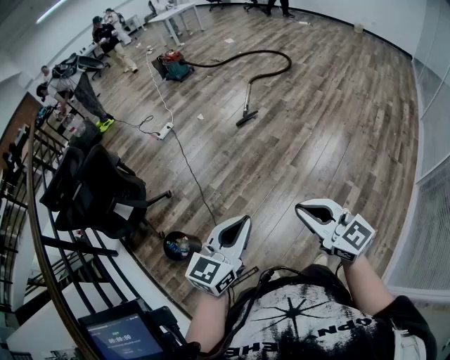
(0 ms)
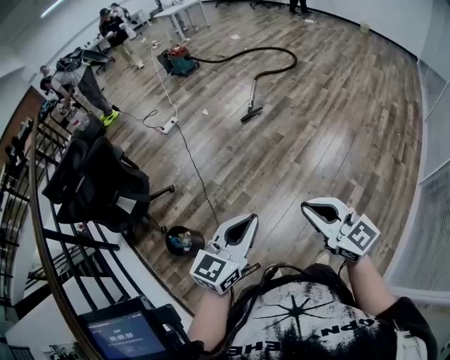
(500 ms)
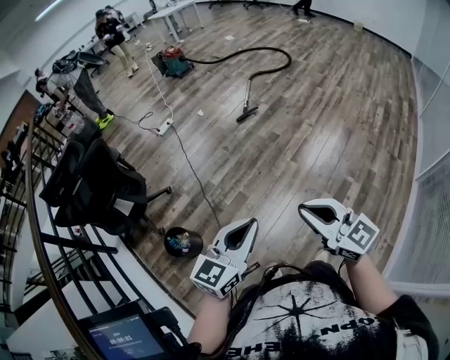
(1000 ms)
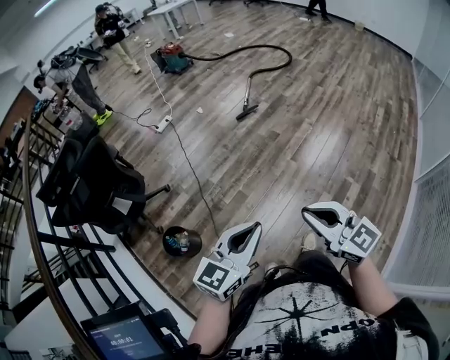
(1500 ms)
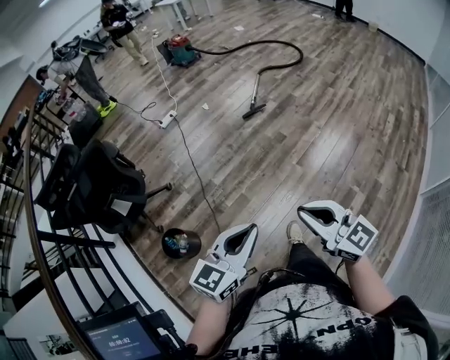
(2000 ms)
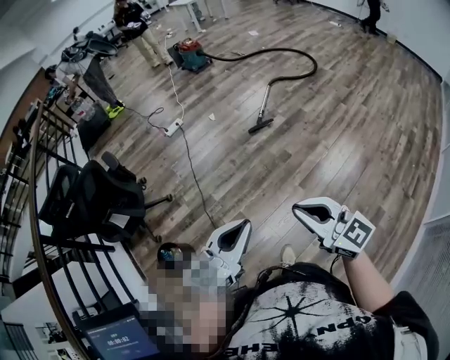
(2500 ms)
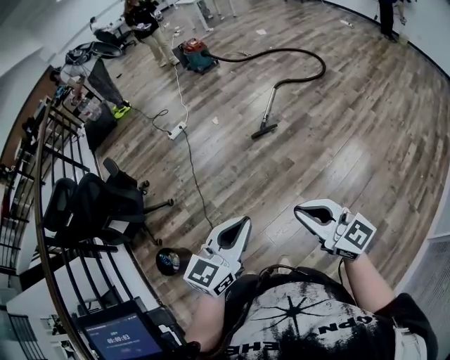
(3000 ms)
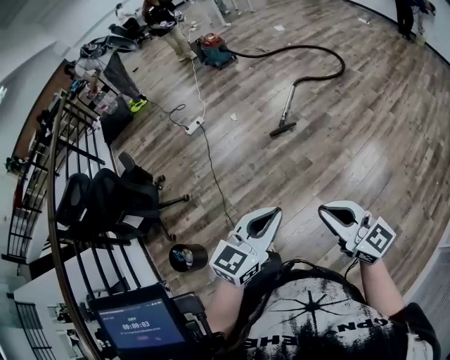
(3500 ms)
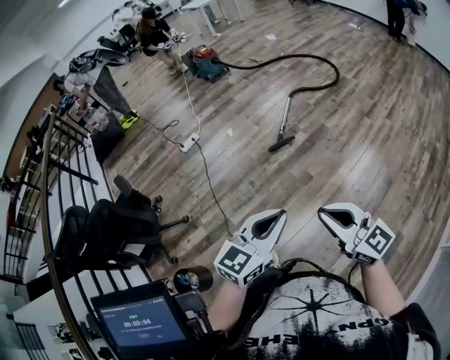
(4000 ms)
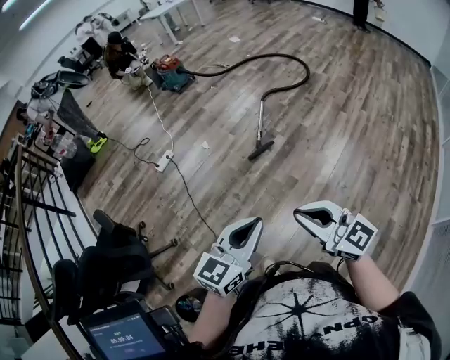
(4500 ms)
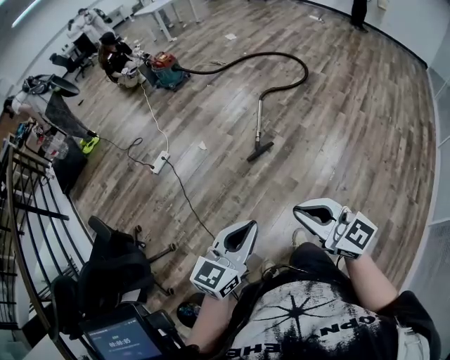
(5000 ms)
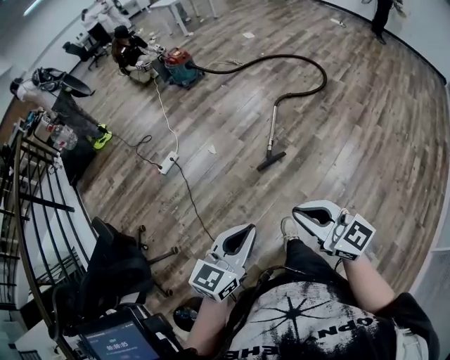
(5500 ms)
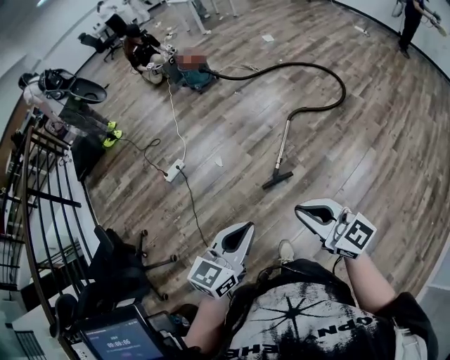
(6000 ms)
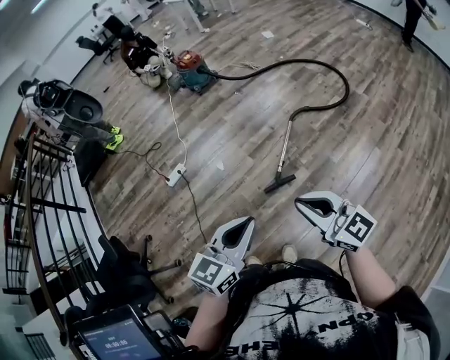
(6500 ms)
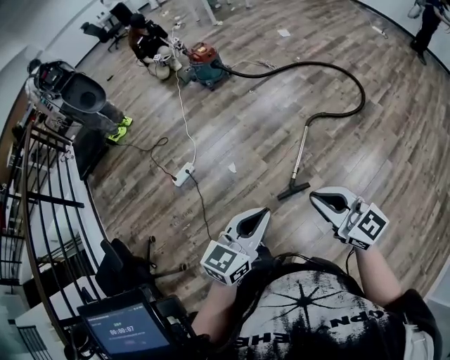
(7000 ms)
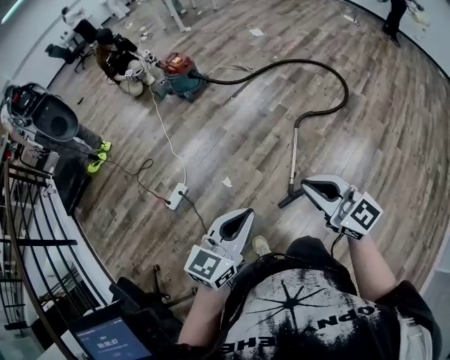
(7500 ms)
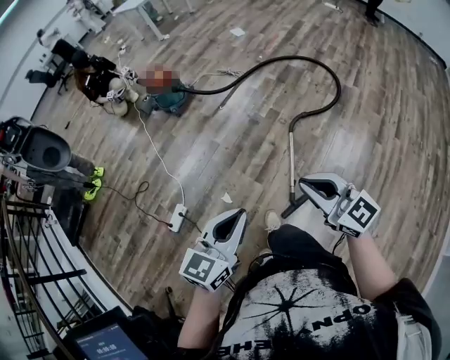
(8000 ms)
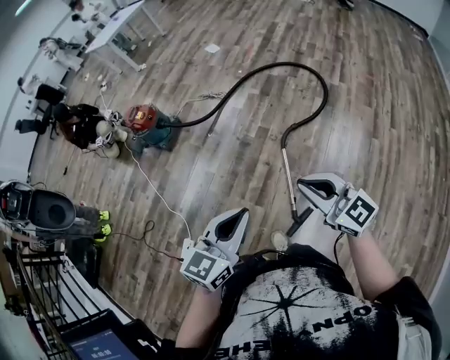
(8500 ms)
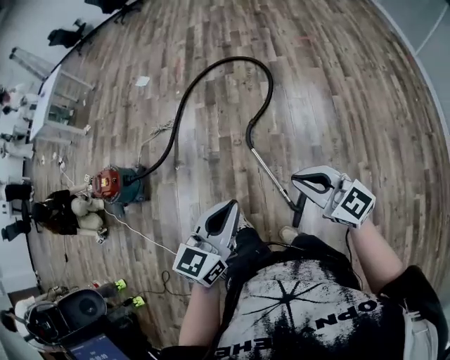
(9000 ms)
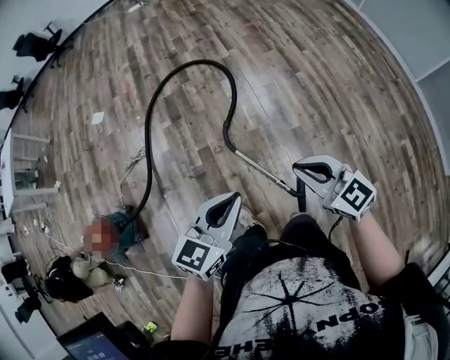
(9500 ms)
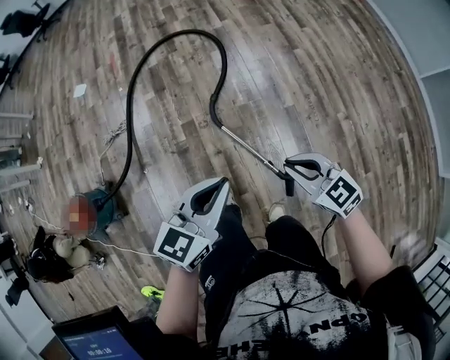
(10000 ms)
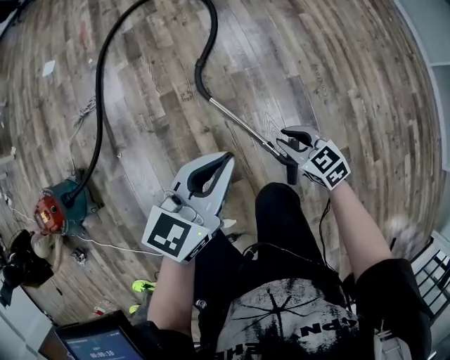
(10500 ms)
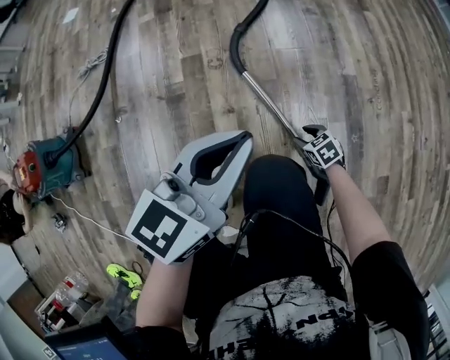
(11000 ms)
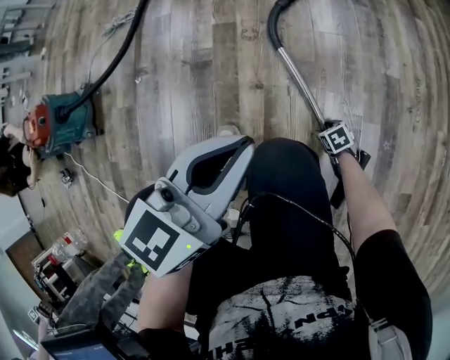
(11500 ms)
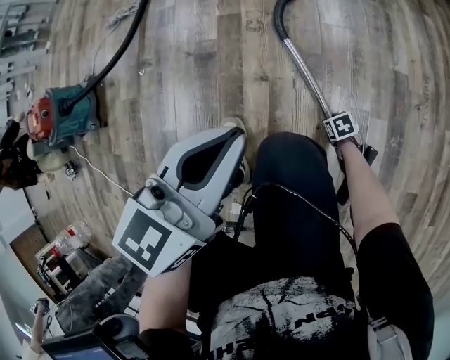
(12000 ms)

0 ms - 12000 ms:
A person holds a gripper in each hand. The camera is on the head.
0 ms - 2000 ms: The two grippers go approximately 5 cm forward.
2000 ms - 4000 ms: Both grippers move forward and to the right, approximately 40 cm.
4000 ms - 6000 ms: The two grippers travel together, forward, some 40 cm.
6000 ms - 8000 ms: The two grippers travel together, forward, roughly 50 cm.
8000 ms - 10000 ms: The right gripper moves roughly 35 cm, and swivels about 50 degrees, while the left gripper ends up approximately 40 cm from where it was, and turns by roughly 60 degrees.
10000 ms - 12000 ms: The left gripper is displaced downward by some 40 cm, and changes its angle by approximately 20 degrees. Meanwhile the right gripper shifts approximately 80 cm downward, tips its fingers downward by some 40 degrees, and opens up.

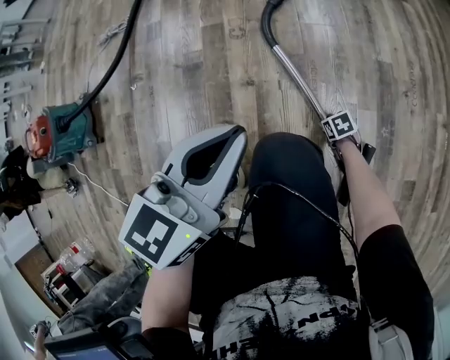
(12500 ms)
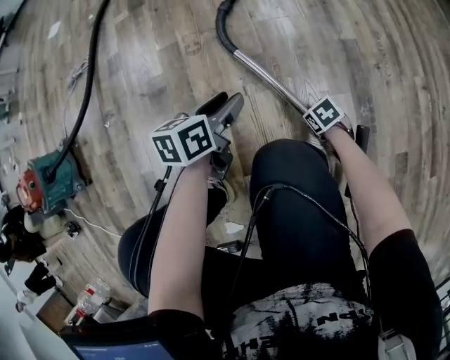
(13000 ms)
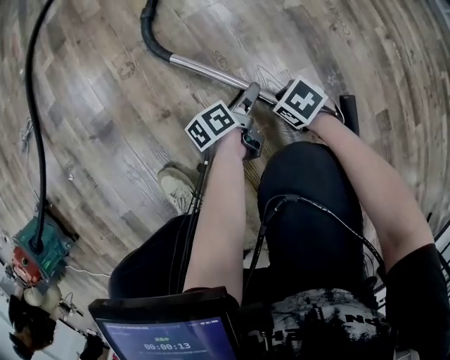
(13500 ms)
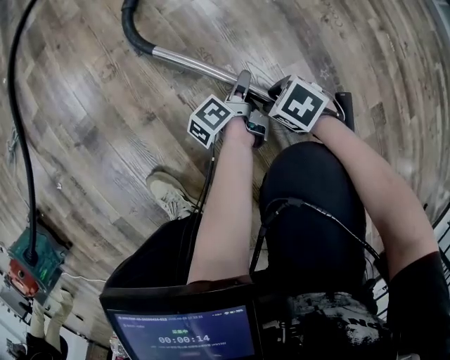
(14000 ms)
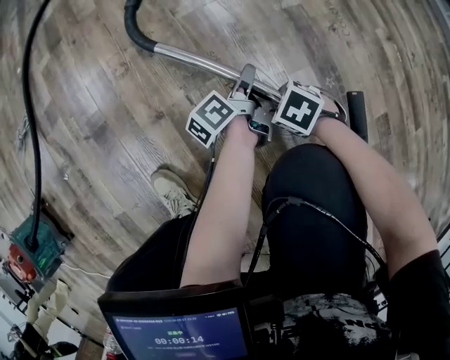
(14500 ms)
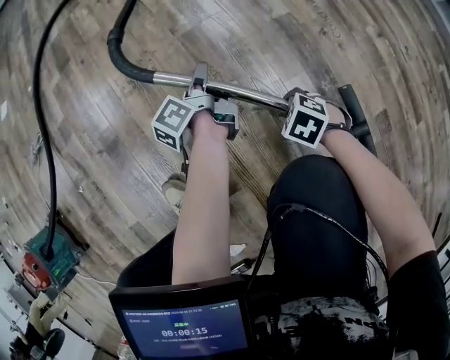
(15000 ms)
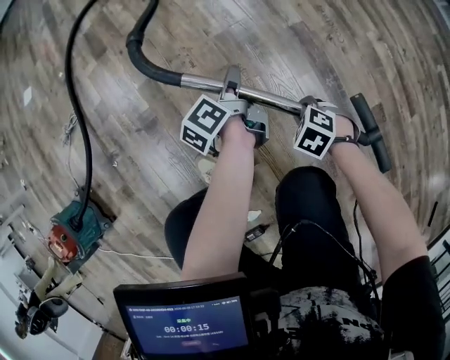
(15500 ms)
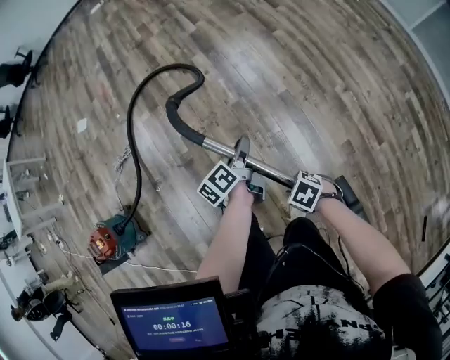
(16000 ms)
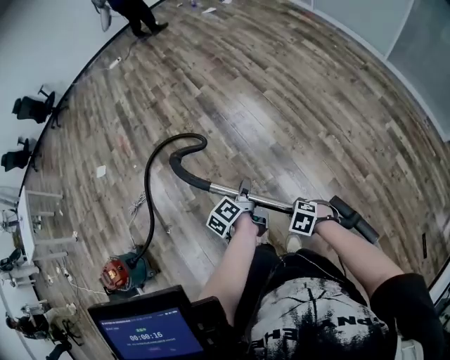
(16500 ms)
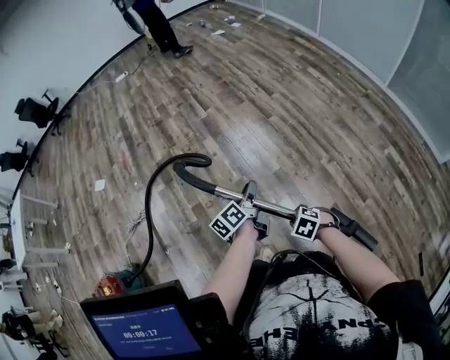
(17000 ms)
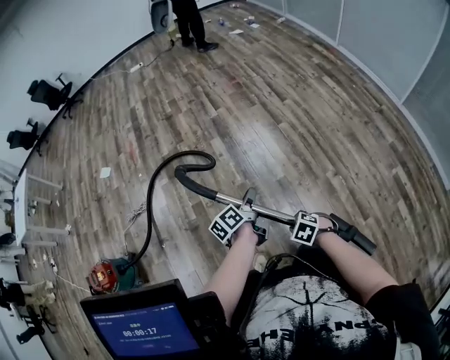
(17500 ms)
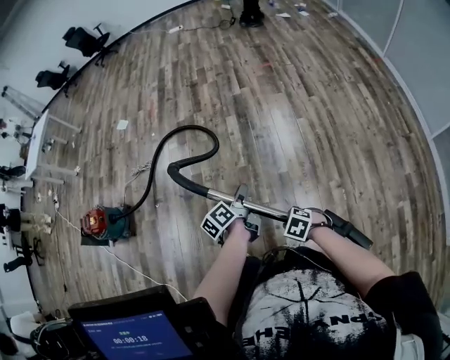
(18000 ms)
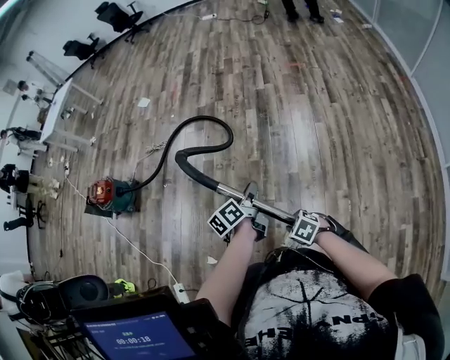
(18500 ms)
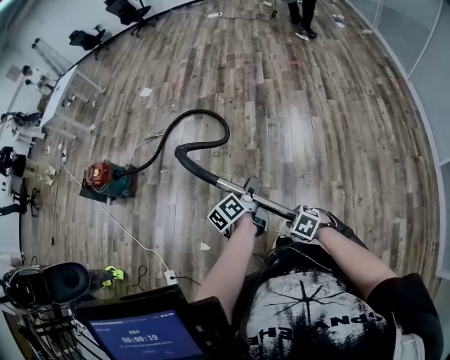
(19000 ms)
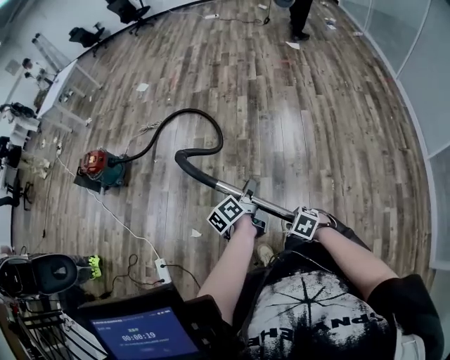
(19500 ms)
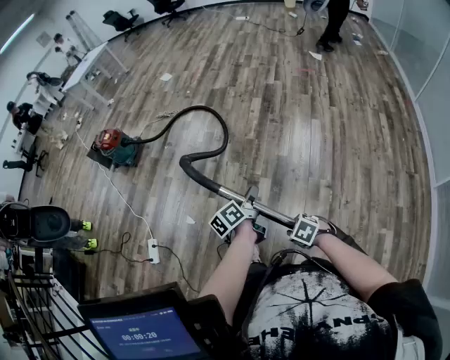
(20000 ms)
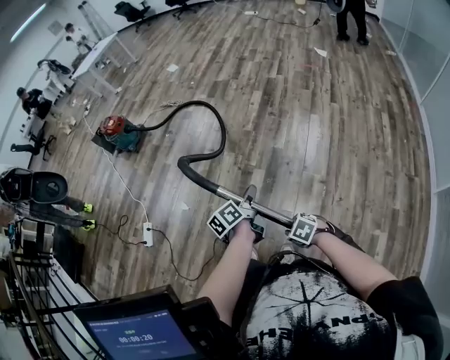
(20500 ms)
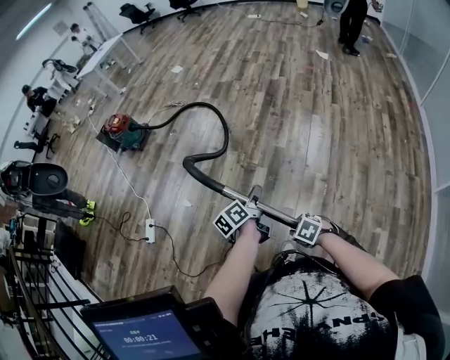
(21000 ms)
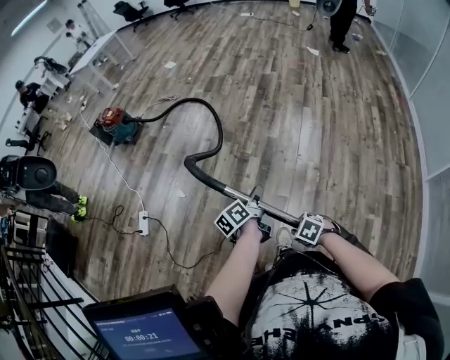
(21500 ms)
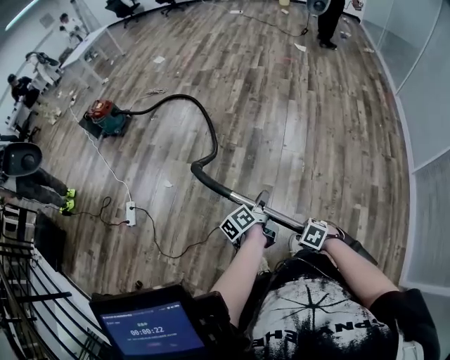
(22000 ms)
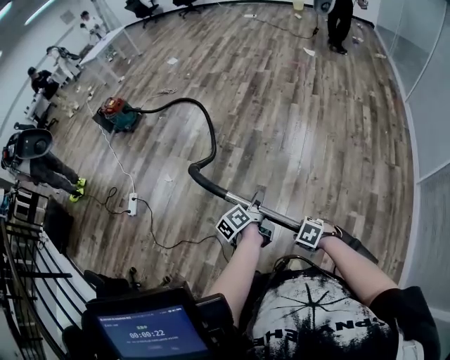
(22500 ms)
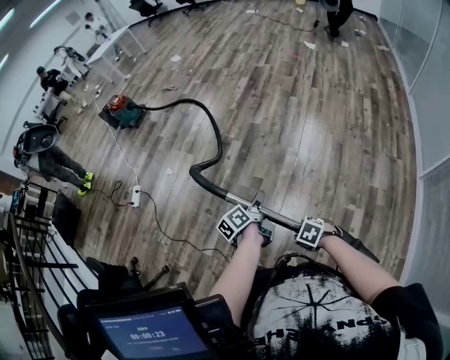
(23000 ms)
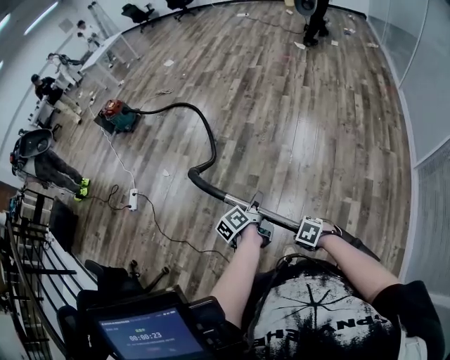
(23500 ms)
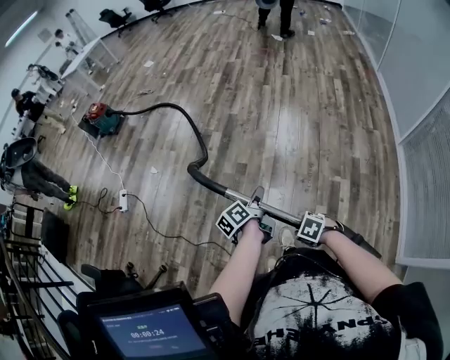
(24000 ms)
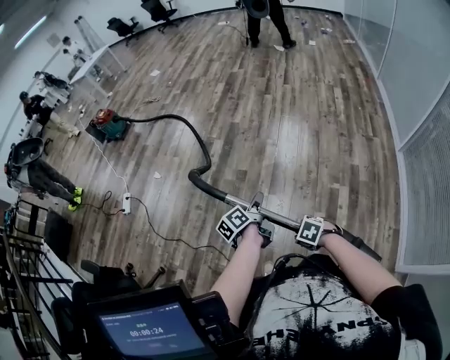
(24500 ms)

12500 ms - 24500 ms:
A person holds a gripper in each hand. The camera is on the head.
12500 ms - 14500 ms: The right gripper goes about 10 cm upward. The left gripper heads downward, covering some 40 cm, rotates around the line of its fingers by about 70 degrees, counterclockwise from behind, and opens up.
14500 ms - 16500 ms: Both grippers travel together upward, some 60 cm.
16500 ms - 18500 ms: The left gripper moves some 15 cm, and changes its angle by some 20 degrees, while the right gripper shifts by about 20 cm, and rotates approximately 30 degrees.
18500 ms - 20500 ms: Both grippers move backward, approximately 40 cm.
20500 ms - 22500 ms: The grippers both shift backward by approximately 35 cm.
22500 ms - 24500 ms: The right gripper moves roughly 25 cm; the left gripper changes place by roughly 25 cm.

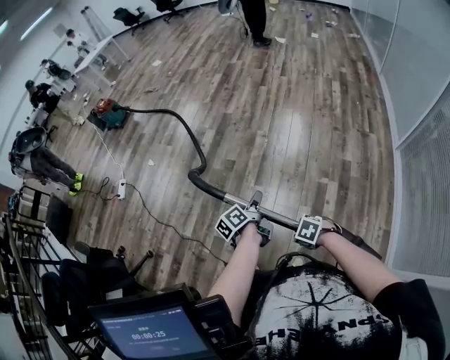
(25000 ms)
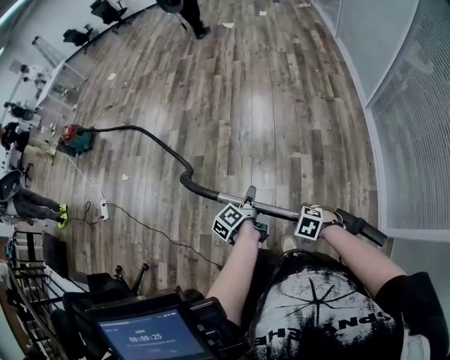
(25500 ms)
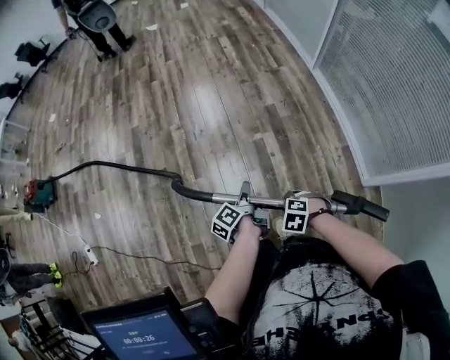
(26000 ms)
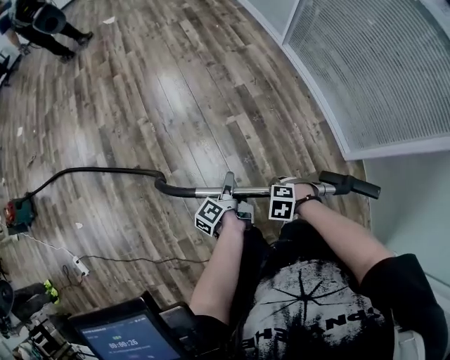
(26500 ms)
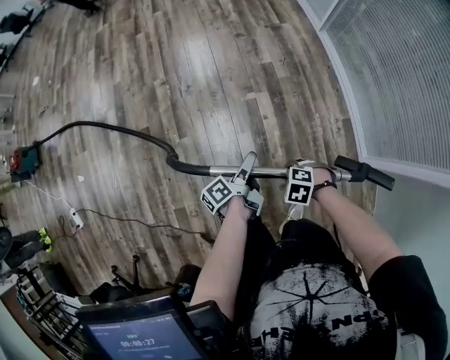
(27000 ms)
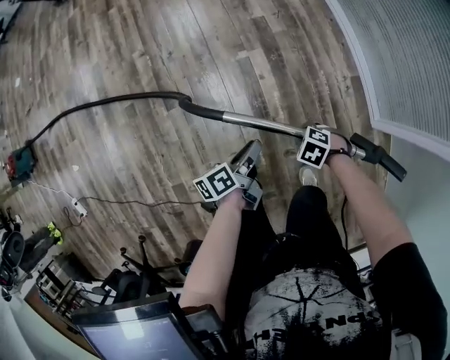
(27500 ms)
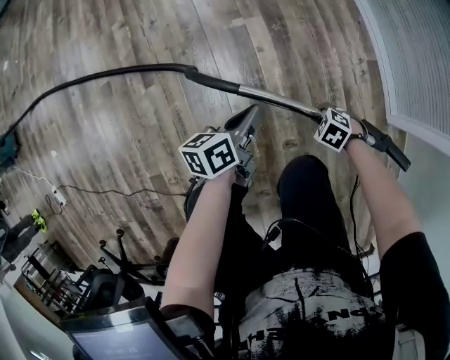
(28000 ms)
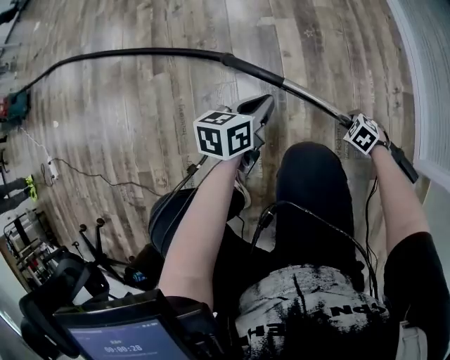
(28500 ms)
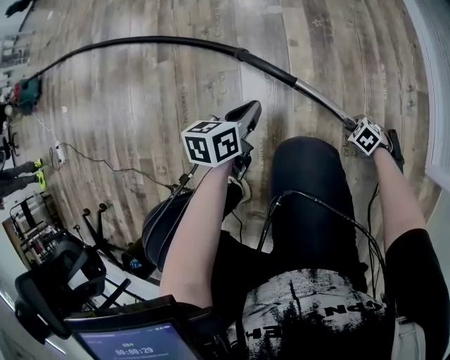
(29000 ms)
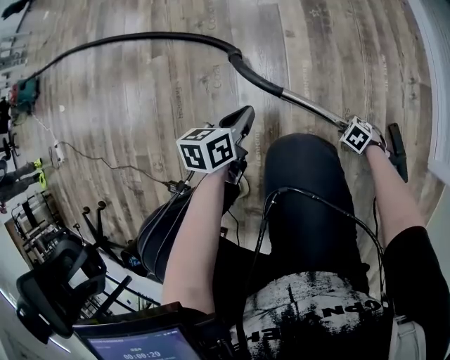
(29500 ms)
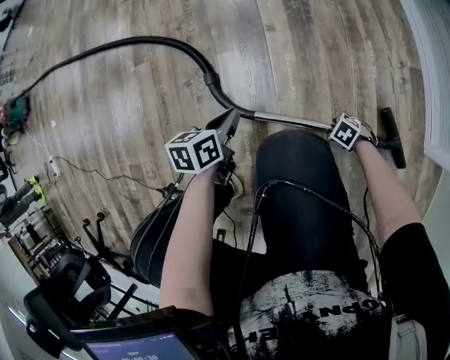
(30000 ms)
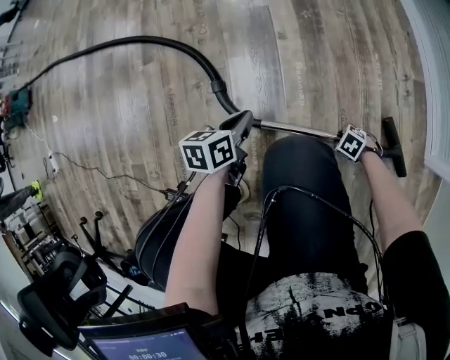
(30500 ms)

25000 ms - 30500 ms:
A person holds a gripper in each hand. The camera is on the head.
25000 ms - 27000 ms: The right gripper ends up roughly 20 cm from where it was. The left gripper moves roughly 30 cm, rotates some 30 degrees, and opens.
27000 ms - 28500 ms: Both grippers move downward, about 40 cm. The left gripper twists about 50 degrees clockwise, seen from behind, and closes up.
28500 ms - 30500 ms: Both grippers travel together downward, roughly 10 cm. The right gripper opens its fingers.
